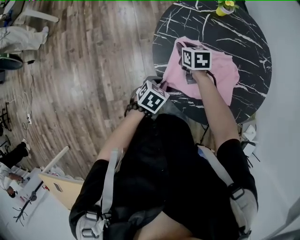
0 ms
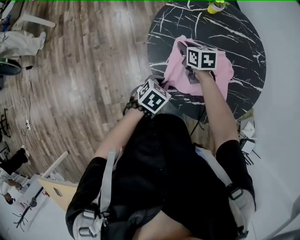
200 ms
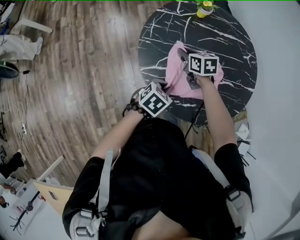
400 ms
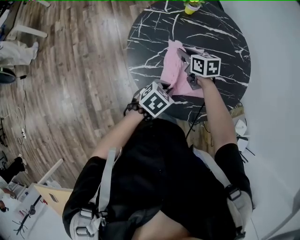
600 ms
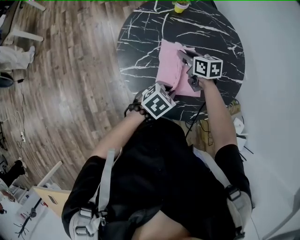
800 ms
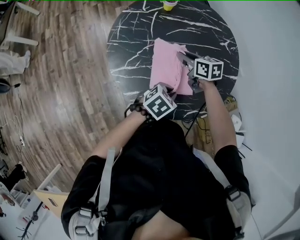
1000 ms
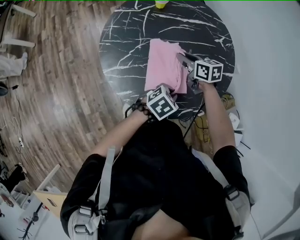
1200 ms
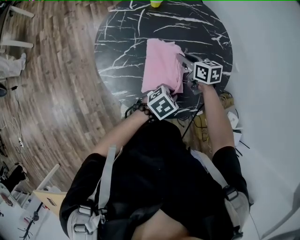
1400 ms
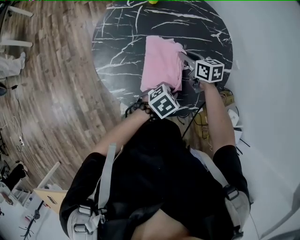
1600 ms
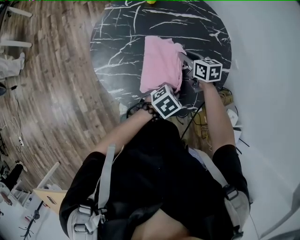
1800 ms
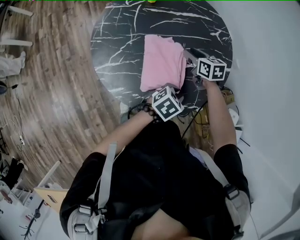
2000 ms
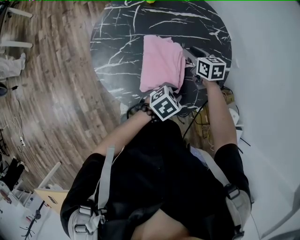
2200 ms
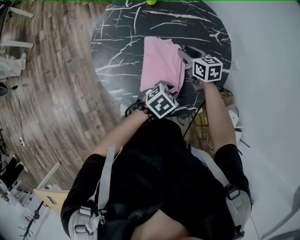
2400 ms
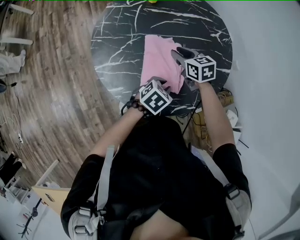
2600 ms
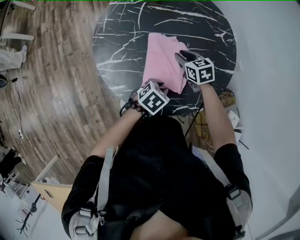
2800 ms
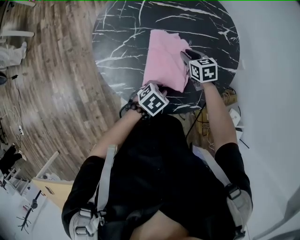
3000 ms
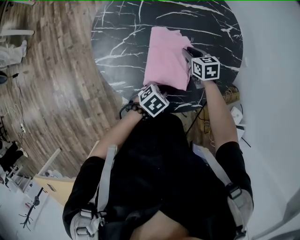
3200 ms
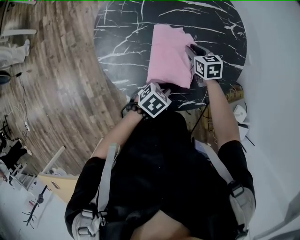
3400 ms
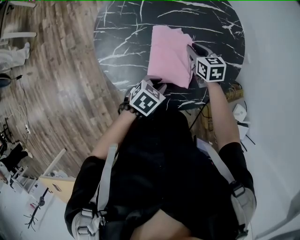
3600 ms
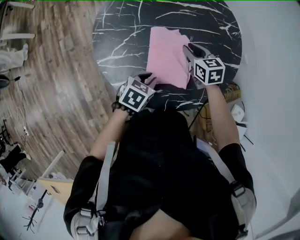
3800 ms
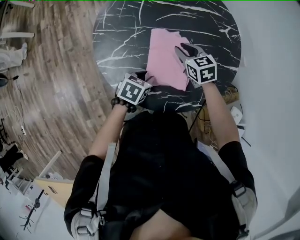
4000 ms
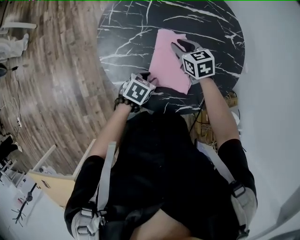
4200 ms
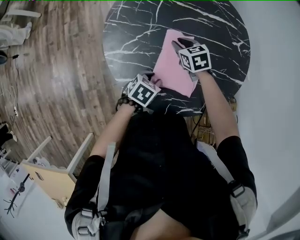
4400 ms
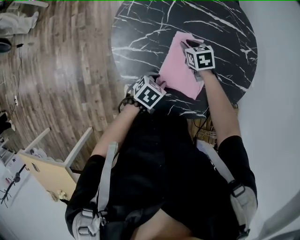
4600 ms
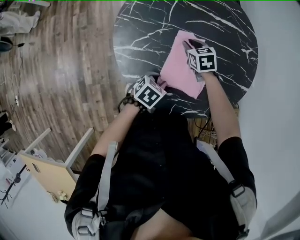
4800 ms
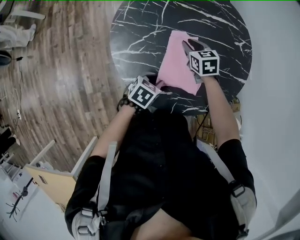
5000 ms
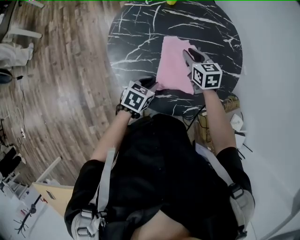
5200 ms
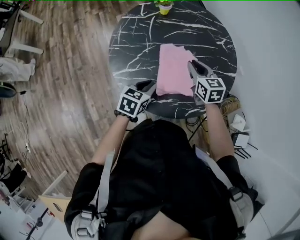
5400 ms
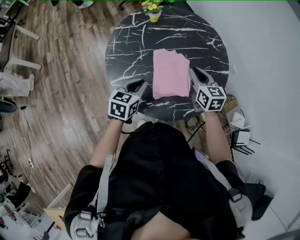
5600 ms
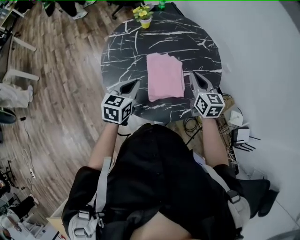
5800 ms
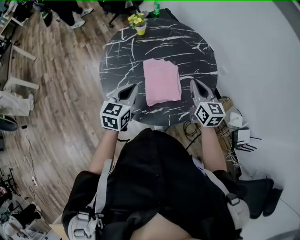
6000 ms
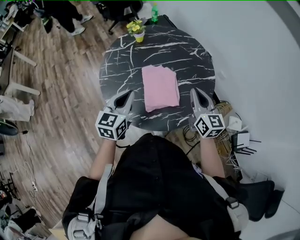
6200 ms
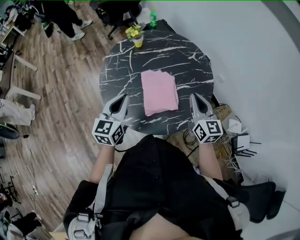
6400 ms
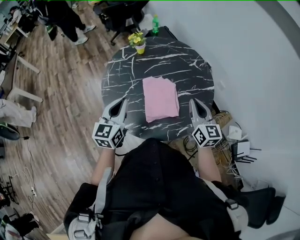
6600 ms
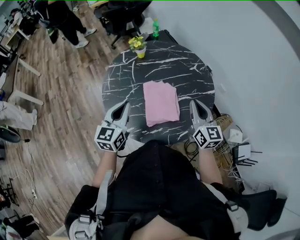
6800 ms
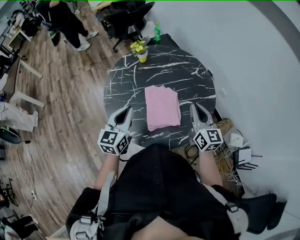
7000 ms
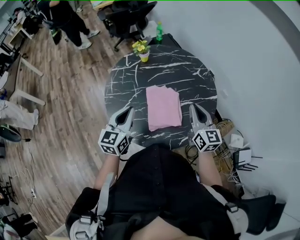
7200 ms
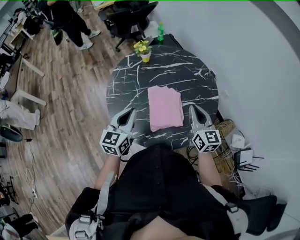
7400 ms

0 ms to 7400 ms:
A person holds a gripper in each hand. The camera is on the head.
0 ms to 1400 ms: The grippers both shift to the right by roughly 30 cm. The left gripper changes its angle by some 30 degrees.
1400 ms to 3000 ms: The grippers both shift downward by approximately 5 cm.
3000 ms to 4400 ms: Both grippers move to the left, roughly 10 cm.
4400 ms to 6000 ms: The left gripper shifts some 20 cm upward, and angles its fingers upward, by about 30 degrees, while the right gripper heads upward, to the right and backward, covering some 30 cm, and angles its fingers upward, by roughly 30 degrees.

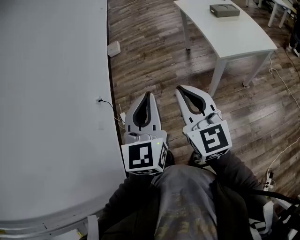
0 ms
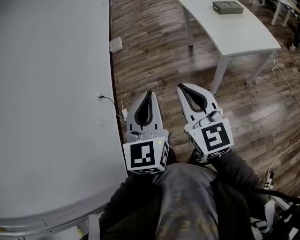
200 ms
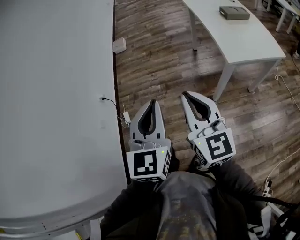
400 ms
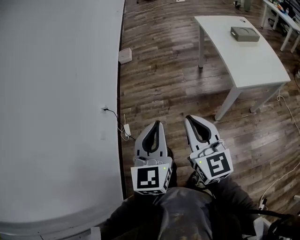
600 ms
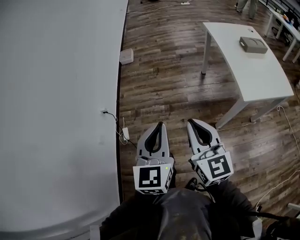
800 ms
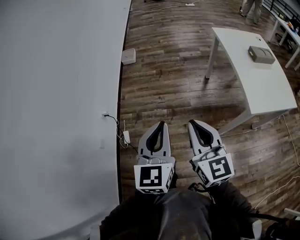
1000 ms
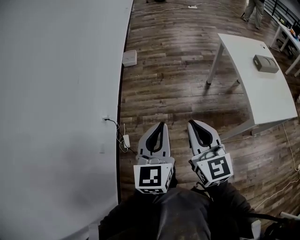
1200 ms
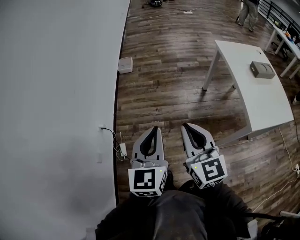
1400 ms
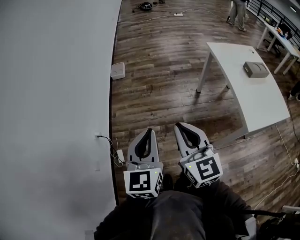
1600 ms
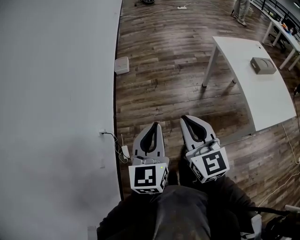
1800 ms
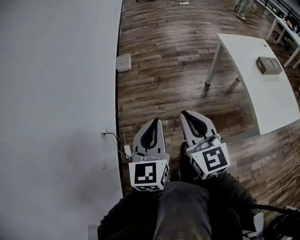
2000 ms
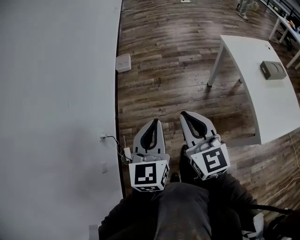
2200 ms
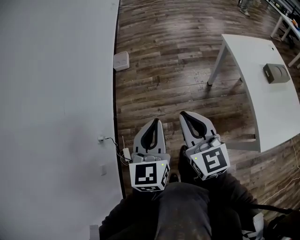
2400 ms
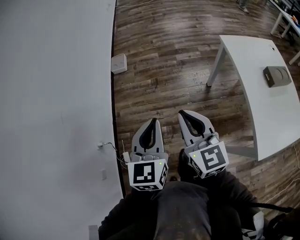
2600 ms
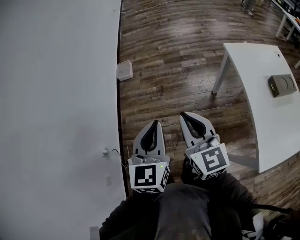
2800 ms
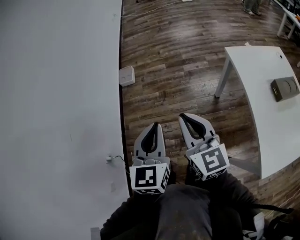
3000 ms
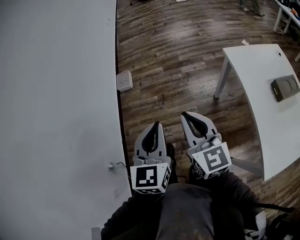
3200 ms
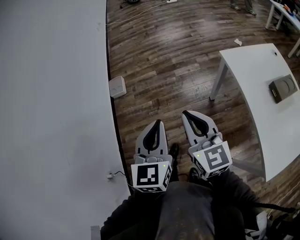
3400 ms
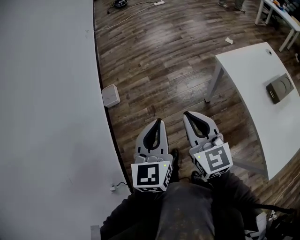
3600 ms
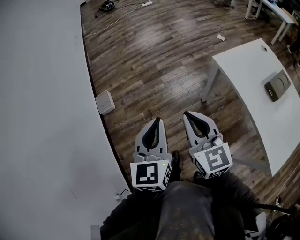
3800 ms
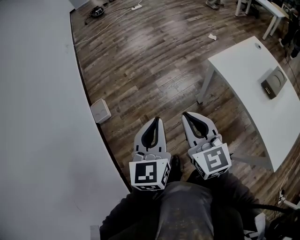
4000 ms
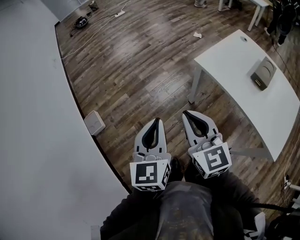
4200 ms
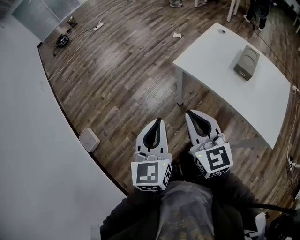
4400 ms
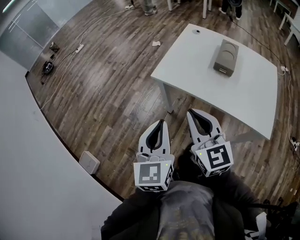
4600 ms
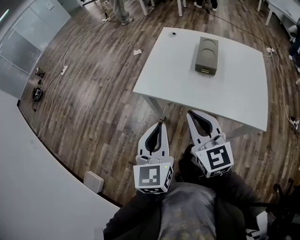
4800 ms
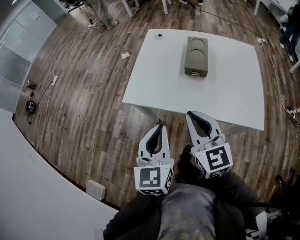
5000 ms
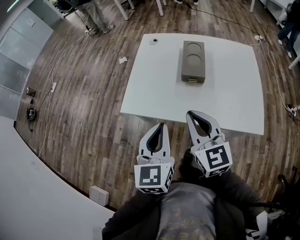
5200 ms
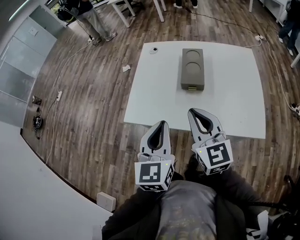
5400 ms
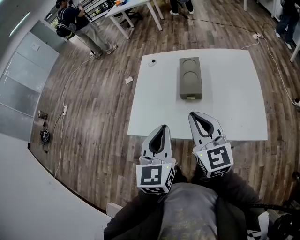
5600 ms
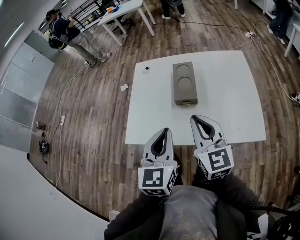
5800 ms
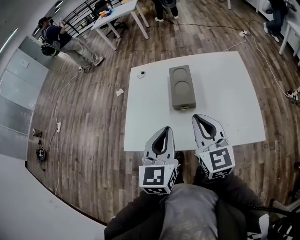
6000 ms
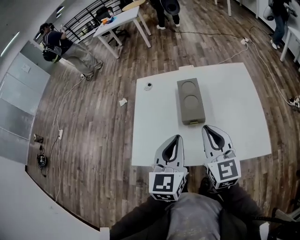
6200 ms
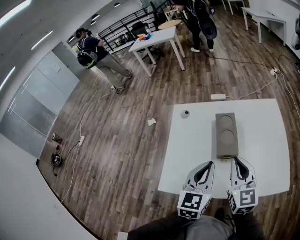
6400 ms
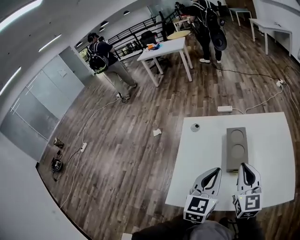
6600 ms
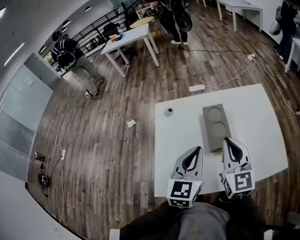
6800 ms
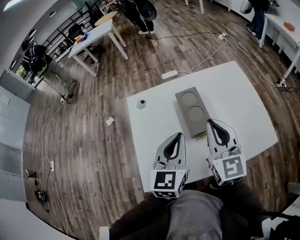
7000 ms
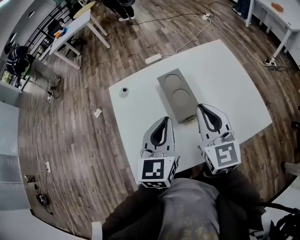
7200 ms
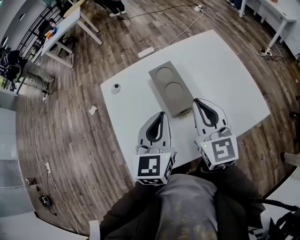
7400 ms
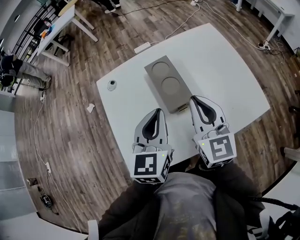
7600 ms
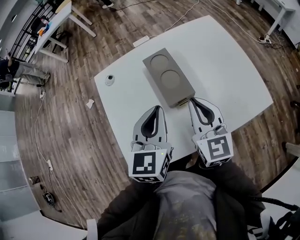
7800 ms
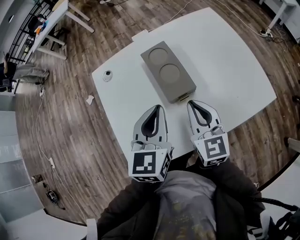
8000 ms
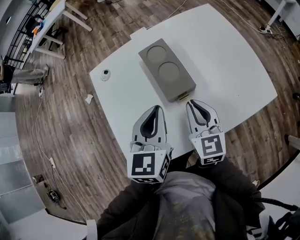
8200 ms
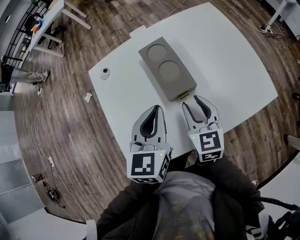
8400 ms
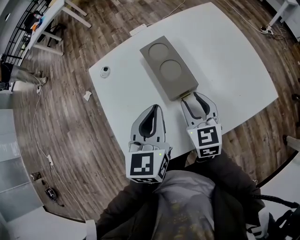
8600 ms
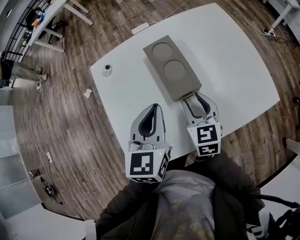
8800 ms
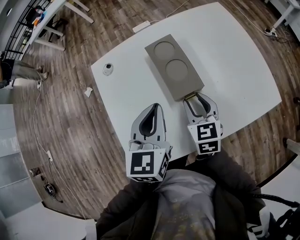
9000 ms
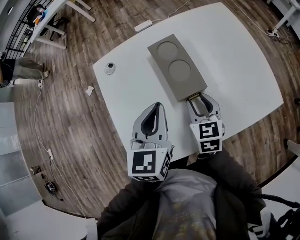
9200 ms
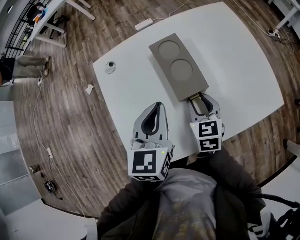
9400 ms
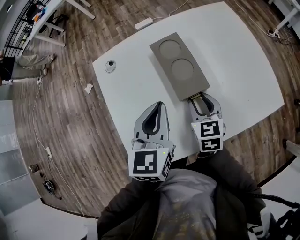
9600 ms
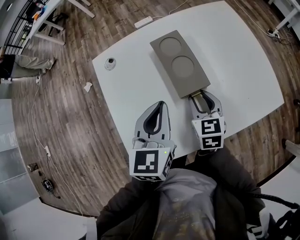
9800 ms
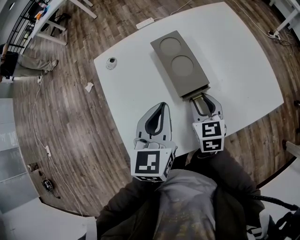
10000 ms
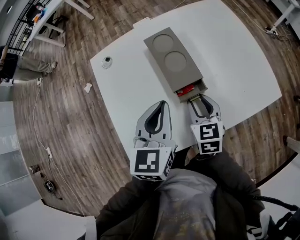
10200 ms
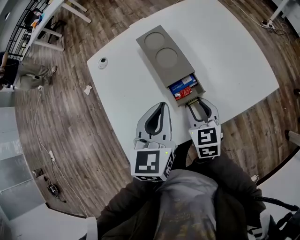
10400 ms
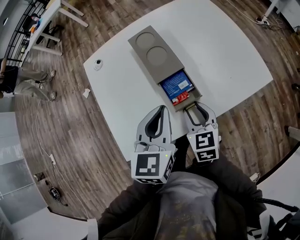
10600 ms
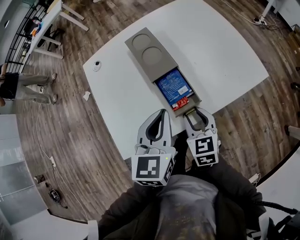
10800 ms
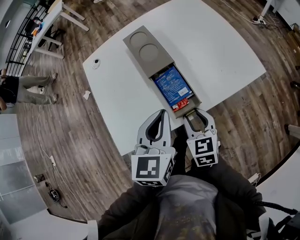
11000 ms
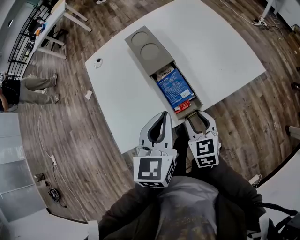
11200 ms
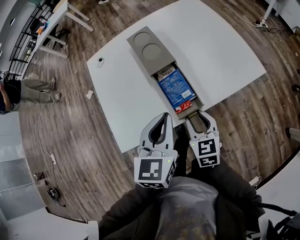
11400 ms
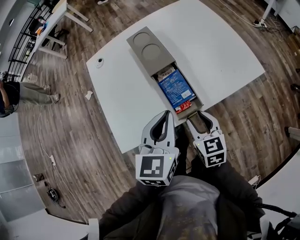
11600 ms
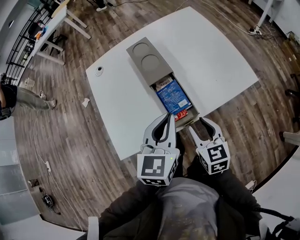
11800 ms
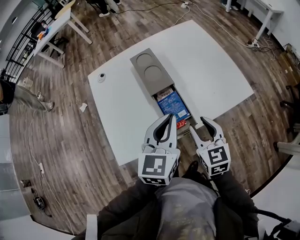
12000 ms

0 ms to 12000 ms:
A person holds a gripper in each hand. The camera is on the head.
0 ms to 1600 ms: Both grippers travel together forward and to the left, some 30 cm.
1600 ms to 3000 ms: The left gripper is displaced forward and to the right by some 30 cm; the right gripper moves forward, roughly 30 cm.
3000 ms to 4400 ms: The left gripper moves roughly 30 cm, and turns by some 40 degrees. Meanwhile the right gripper ends up some 20 cm from where it was, and changes its angle by roughly 40 degrees.
4400 ms to 6000 ms: The left gripper changes place by roughly 40 cm, and changes its angle by approximately 50 degrees. Meanwhile the right gripper moves about 35 cm, and changes its angle by approximately 50 degrees.
6000 ms to 7600 ms: Both grippers move forward, about 10 cm. The right gripper changes its angle by roughly 20 degrees; the left gripper swivels approximately 20 degrees.
7600 ms to 9000 ms: The left gripper shifts by roughly 5 cm, while the right gripper travels downward by roughly 15 cm, swivels roughly 30 degrees, and opens its fingers.
9000 ms to 10400 ms: The left gripper ends up roughly 5 cm from where it was; the right gripper shifts approximately 5 cm backward.
10400 ms to 12000 ms: The right gripper goes about 15 cm backward, upward and to the right, while the left gripper shifts about 10 cm to the right and backward.

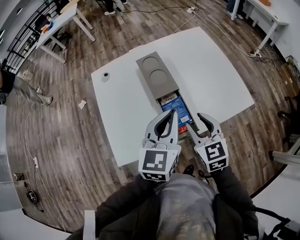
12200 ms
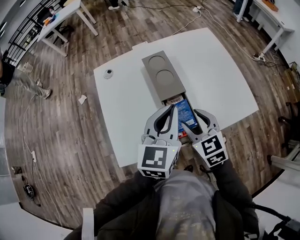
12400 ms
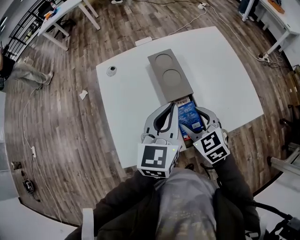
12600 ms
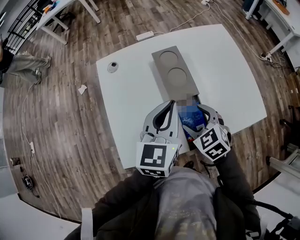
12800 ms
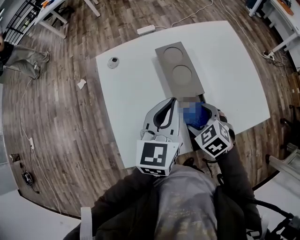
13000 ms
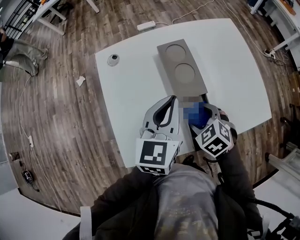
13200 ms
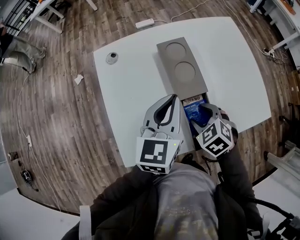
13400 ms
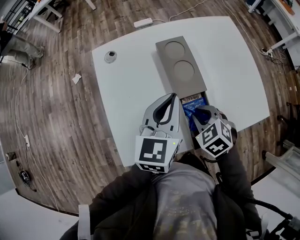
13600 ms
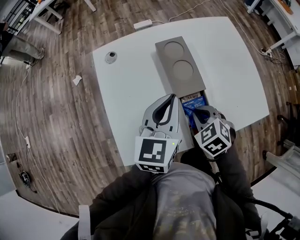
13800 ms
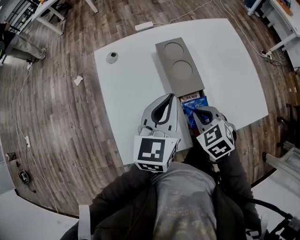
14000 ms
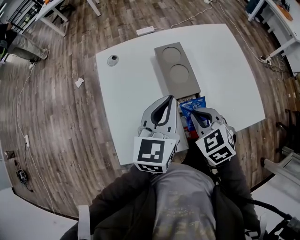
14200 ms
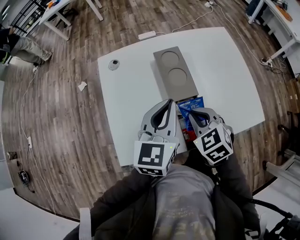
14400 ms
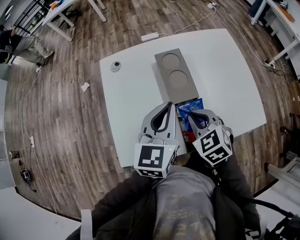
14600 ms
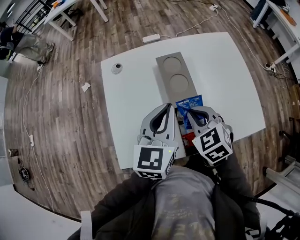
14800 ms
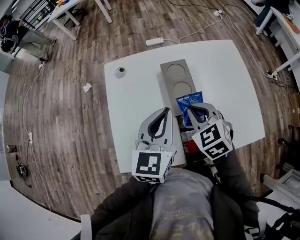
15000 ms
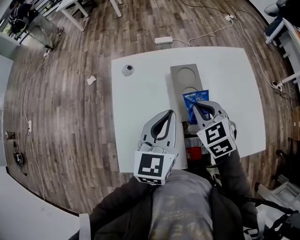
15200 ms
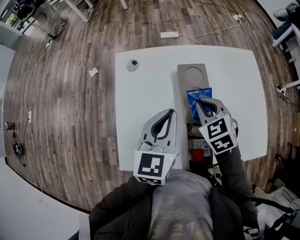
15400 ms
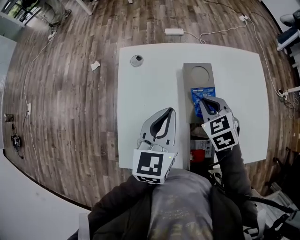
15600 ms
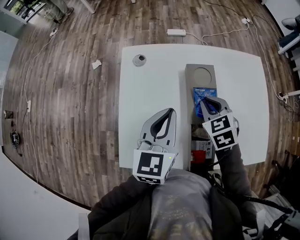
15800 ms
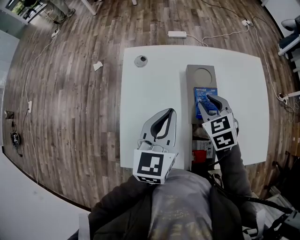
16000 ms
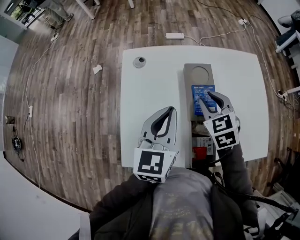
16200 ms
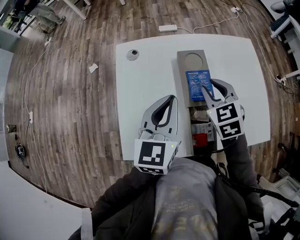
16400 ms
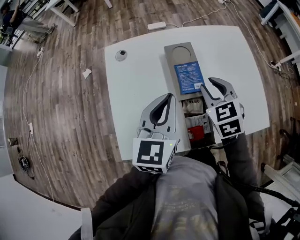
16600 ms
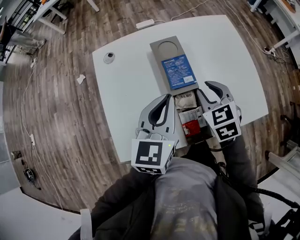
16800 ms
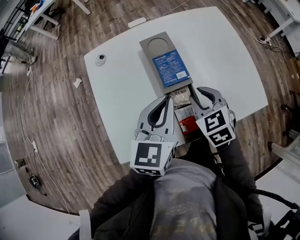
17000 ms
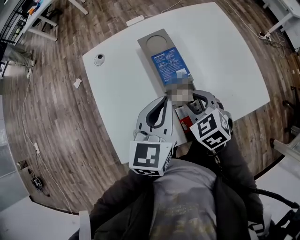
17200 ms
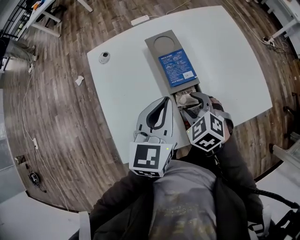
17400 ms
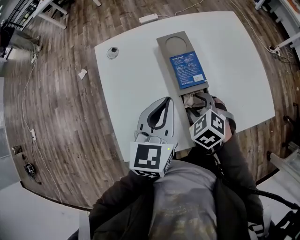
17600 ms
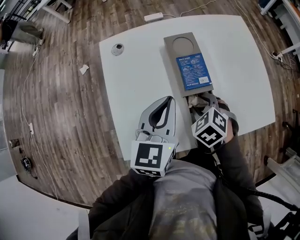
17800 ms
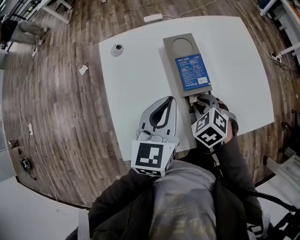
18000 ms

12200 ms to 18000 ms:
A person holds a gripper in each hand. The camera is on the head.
12200 ms to 13600 ms: The right gripper moves downward, forward and to the left, roughly 15 cm, points its fingers approximately 30 degrees further downward, and opens, then closes once more, while the left gripper travels forward and to the left by some 10 cm.
13600 ms to 15000 ms: The right gripper shifts approximately 10 cm upward and forward.
15000 ms to 16600 ms: The right gripper opens its fingers.
16600 ms to 18000 ms: The right gripper travels downward and backward by roughly 10 cm, rotates some 30 degrees, and opens and closes again.
